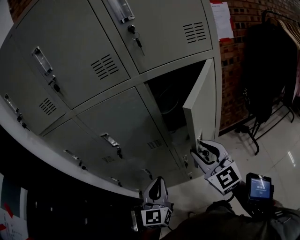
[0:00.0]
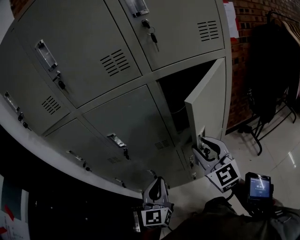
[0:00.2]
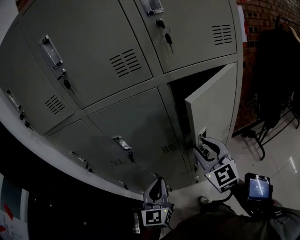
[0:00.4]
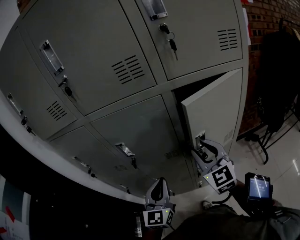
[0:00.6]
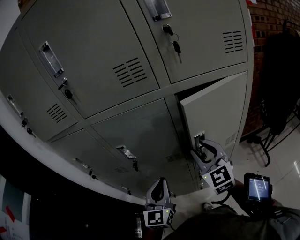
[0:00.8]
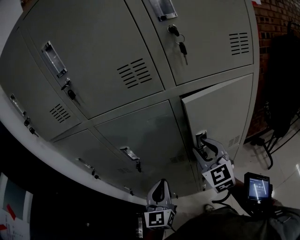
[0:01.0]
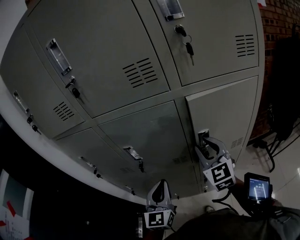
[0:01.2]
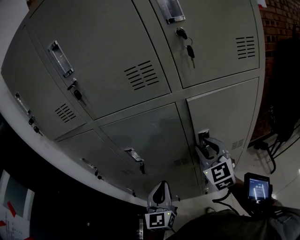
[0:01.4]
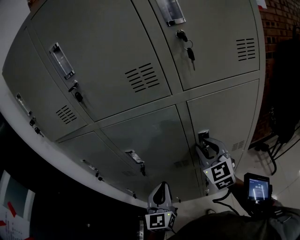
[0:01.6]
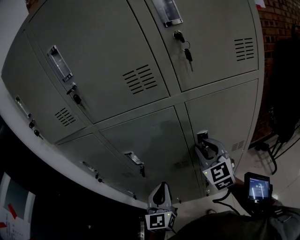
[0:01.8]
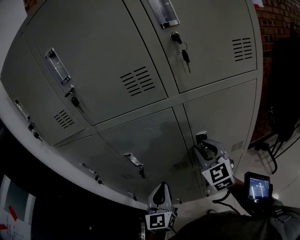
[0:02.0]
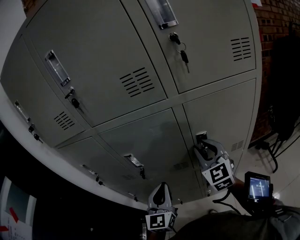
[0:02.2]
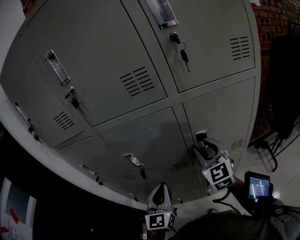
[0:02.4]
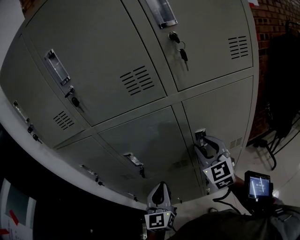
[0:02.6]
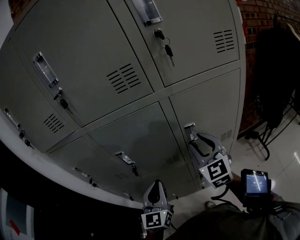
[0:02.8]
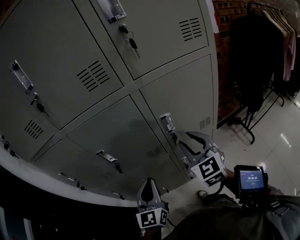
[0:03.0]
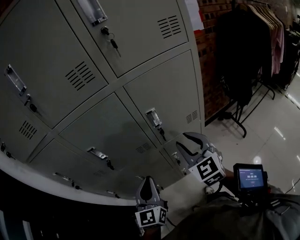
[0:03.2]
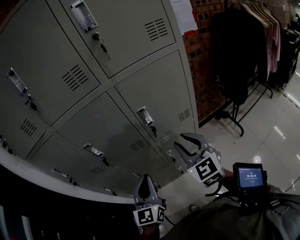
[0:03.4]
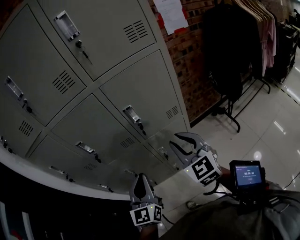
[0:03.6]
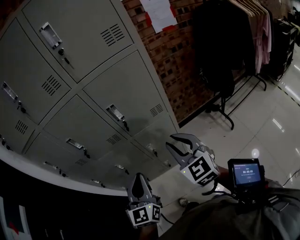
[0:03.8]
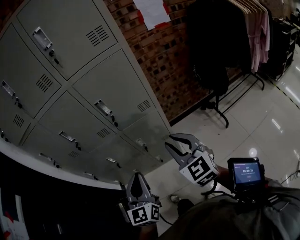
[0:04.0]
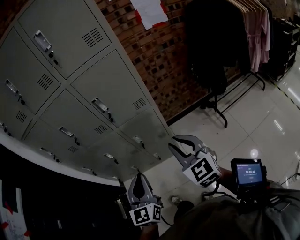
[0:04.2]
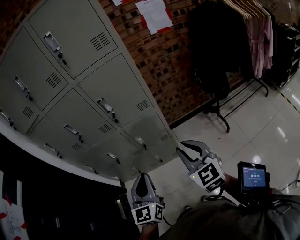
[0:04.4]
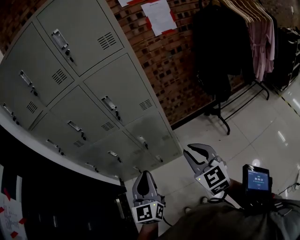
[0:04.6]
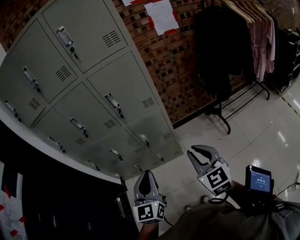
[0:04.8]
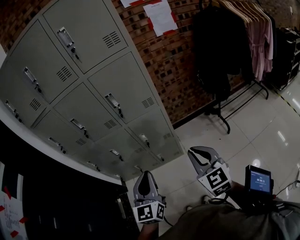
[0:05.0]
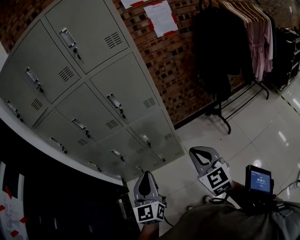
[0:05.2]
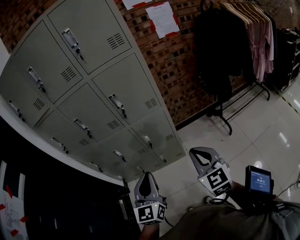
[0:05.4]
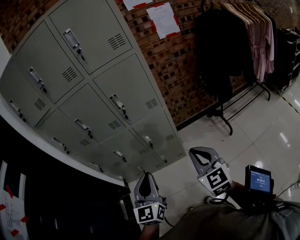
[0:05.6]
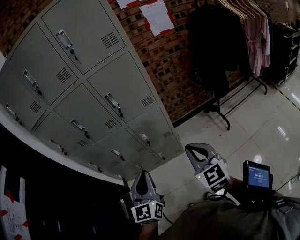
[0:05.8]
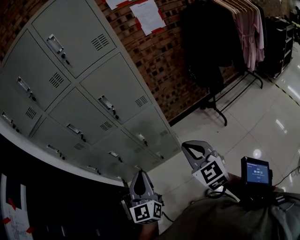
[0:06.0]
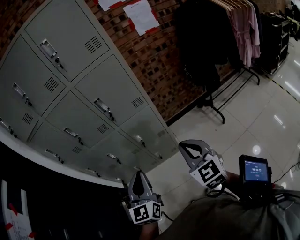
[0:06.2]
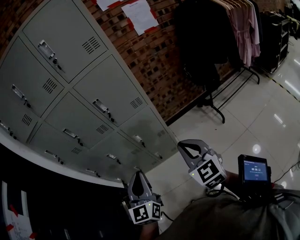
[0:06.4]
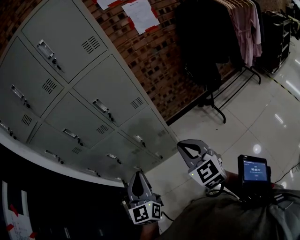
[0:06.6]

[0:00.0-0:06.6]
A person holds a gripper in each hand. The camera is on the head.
0.0 to 1.6 s: The left gripper goes some 10 cm forward and to the left; the right gripper moves forward, roughly 15 cm.
1.6 to 3.2 s: The left gripper is displaced backward and to the right by approximately 10 cm; the right gripper heads backward and to the right, covering roughly 15 cm.
3.2 to 5.0 s: The grippers both shift backward and to the right by approximately 35 cm. The right gripper closes.
5.0 to 6.6 s: The grippers stay close to where they were, moving slightly.

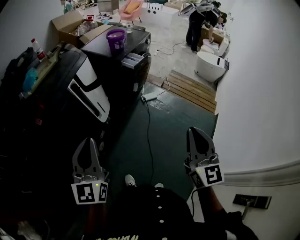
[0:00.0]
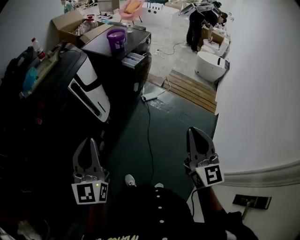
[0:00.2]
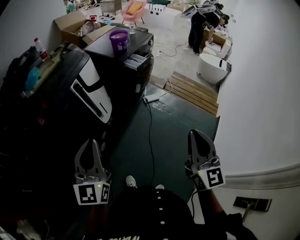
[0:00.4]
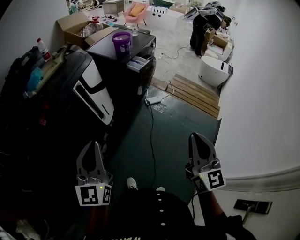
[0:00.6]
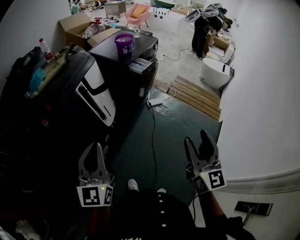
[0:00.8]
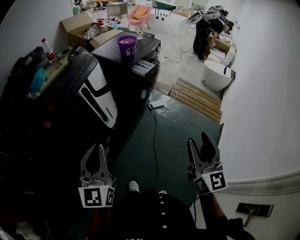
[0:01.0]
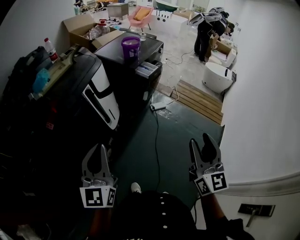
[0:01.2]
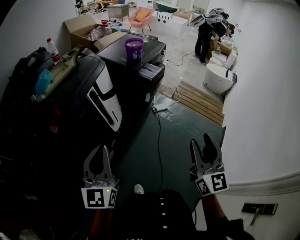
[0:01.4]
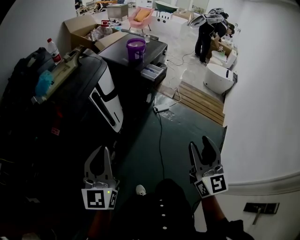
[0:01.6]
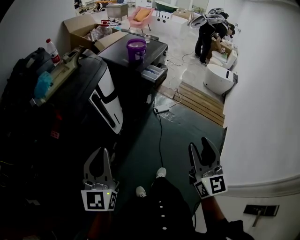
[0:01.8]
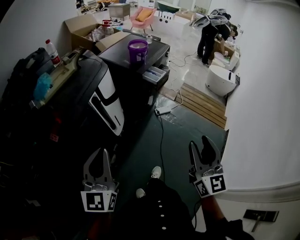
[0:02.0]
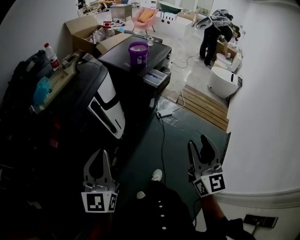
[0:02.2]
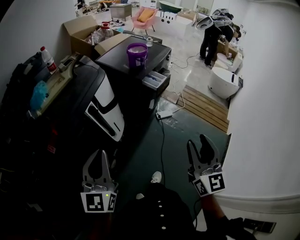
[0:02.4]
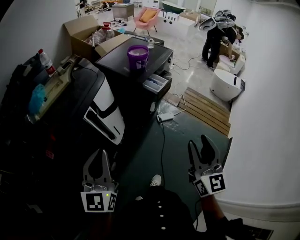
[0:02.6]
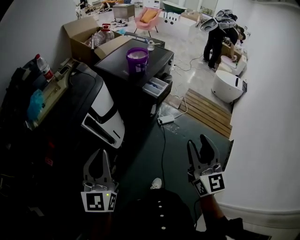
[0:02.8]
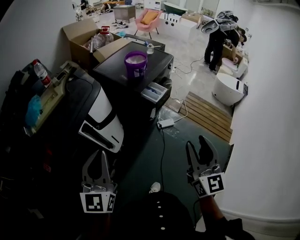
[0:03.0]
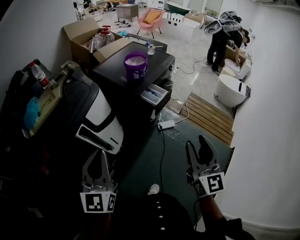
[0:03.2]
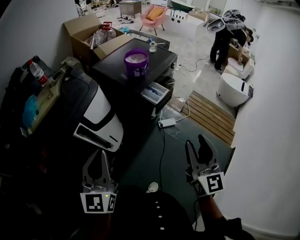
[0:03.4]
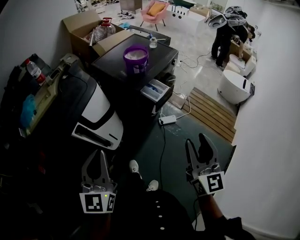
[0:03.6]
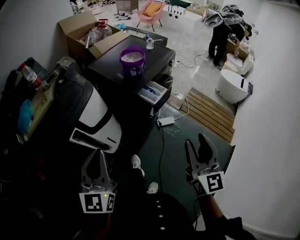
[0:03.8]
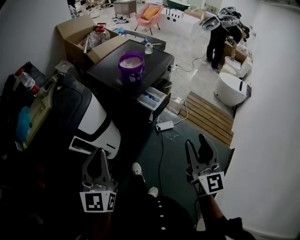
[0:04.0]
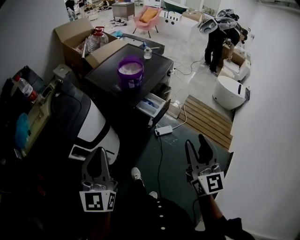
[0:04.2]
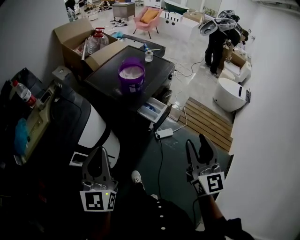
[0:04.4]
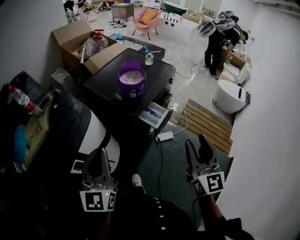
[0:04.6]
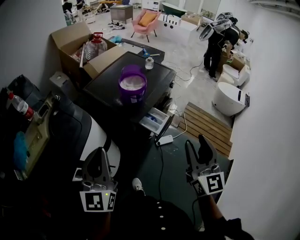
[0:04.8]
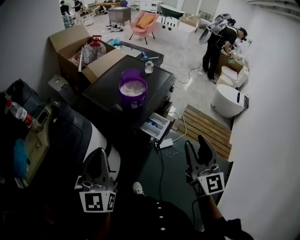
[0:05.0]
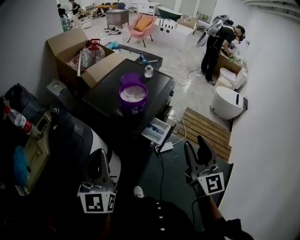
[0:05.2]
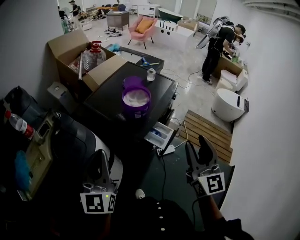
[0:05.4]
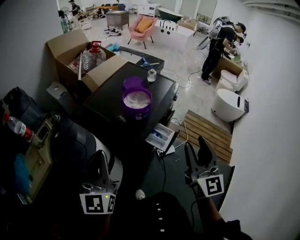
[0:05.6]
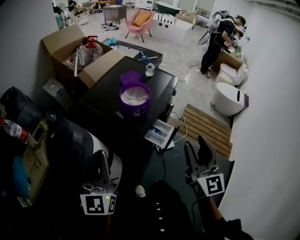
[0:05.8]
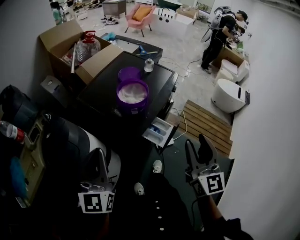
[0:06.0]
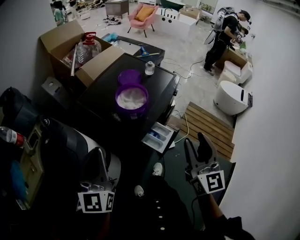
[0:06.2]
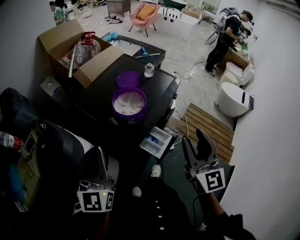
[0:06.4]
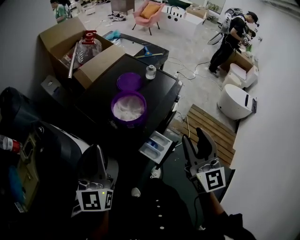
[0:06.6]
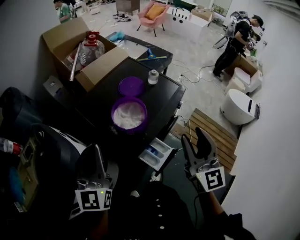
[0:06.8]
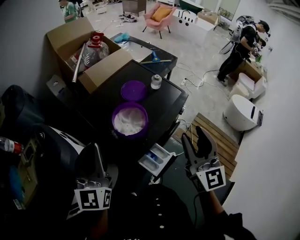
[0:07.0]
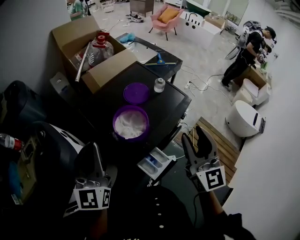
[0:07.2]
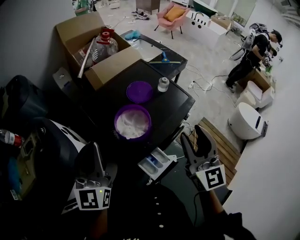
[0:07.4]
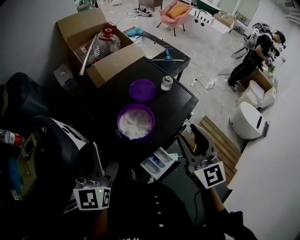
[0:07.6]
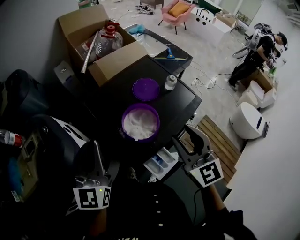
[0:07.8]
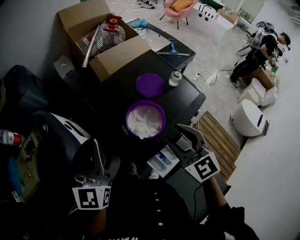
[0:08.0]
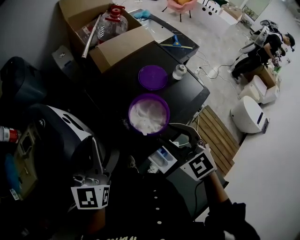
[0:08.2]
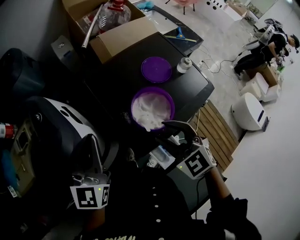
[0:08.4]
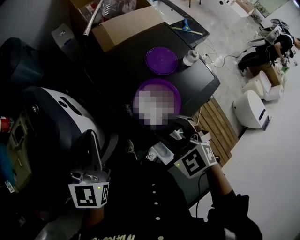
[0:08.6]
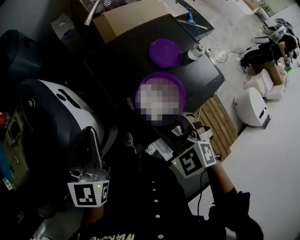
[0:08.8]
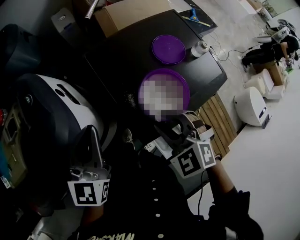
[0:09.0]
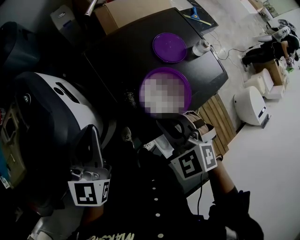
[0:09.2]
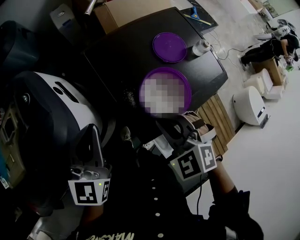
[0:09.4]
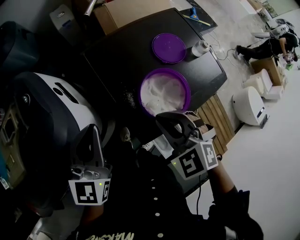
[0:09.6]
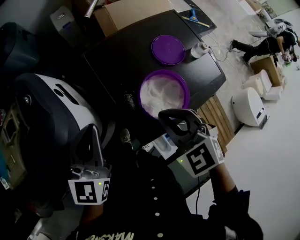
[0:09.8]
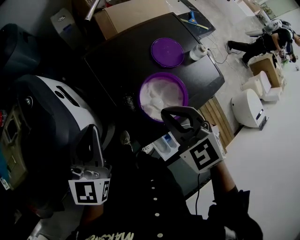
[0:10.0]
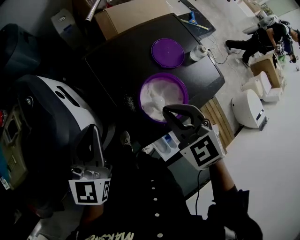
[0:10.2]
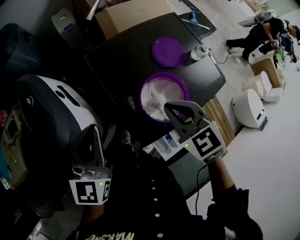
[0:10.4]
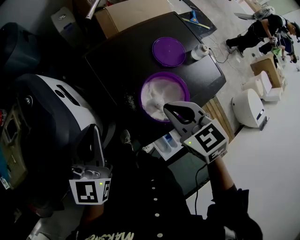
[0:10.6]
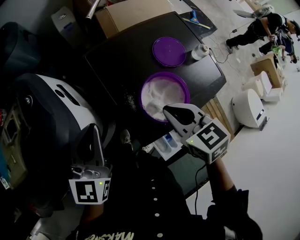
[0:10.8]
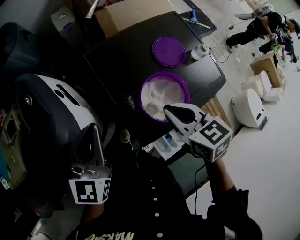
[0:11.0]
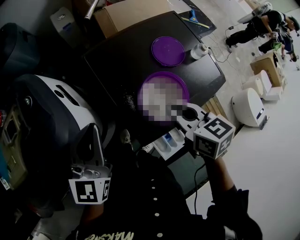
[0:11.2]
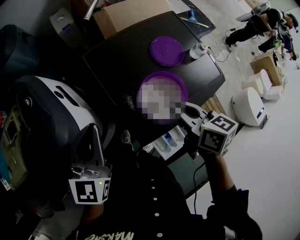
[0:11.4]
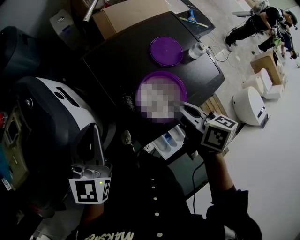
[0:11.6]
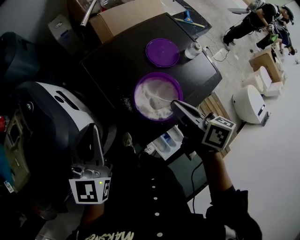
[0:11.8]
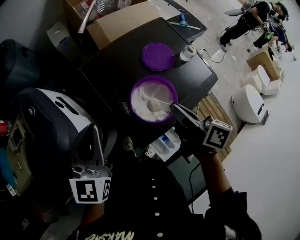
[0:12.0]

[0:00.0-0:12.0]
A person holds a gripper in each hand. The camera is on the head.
0.0 to 1.6 s: Both grippers travel together to the left, roughly 10 cm. The right gripper opens its fingers.
1.6 to 3.0 s: Both grippers travel together forward, about 20 cm.
3.0 to 4.4 s: Both grippers travel together forward, approximately 20 cm.
4.4 to 6.0 s: Both grippers travel together forward, some 20 cm.
6.0 to 7.6 s: The left gripper is displaced forward by some 15 cm, while the right gripper heads forward, covering some 25 cm, and turns by roughly 30 degrees.
7.6 to 9.0 s: The right gripper is displaced to the left and downward by approximately 25 cm, and tips its fingers downward by roughly 40 degrees. Meanwhile the left gripper goes some 10 cm downward and to the left.
9.0 to 10.4 s: The right gripper shifts by about 5 cm, swivels some 20 degrees, and closes.
10.4 to 12.0 s: The right gripper travels to the right by approximately 5 cm, and rotates around the line of its fingers by about 70 degrees, clockwise from behind.

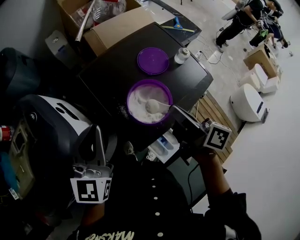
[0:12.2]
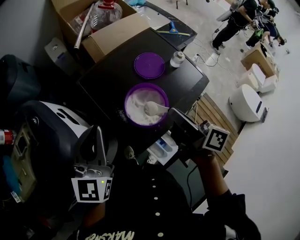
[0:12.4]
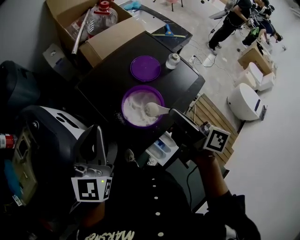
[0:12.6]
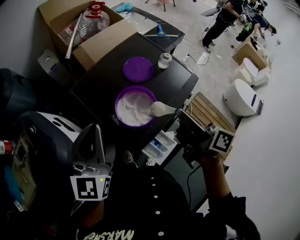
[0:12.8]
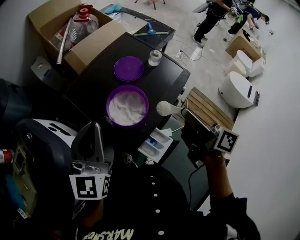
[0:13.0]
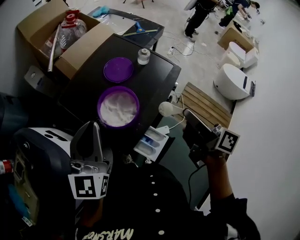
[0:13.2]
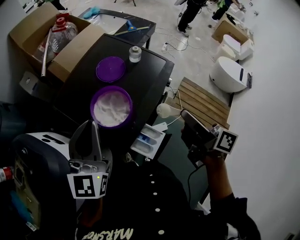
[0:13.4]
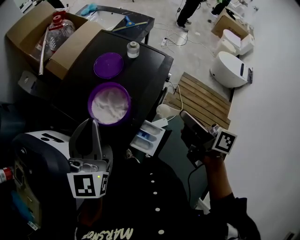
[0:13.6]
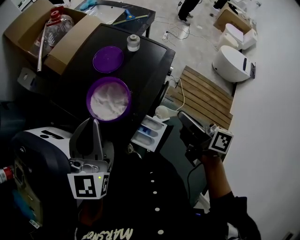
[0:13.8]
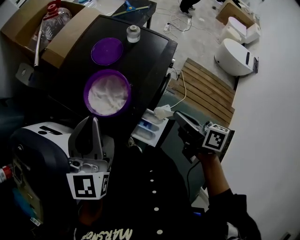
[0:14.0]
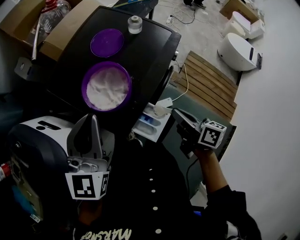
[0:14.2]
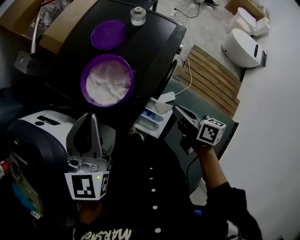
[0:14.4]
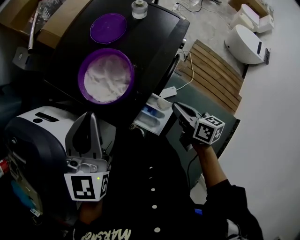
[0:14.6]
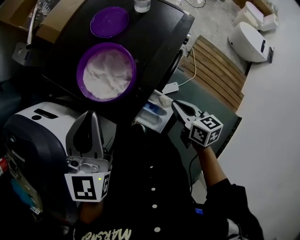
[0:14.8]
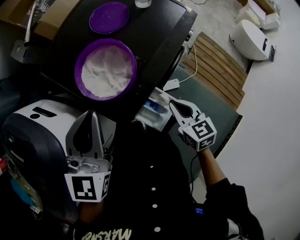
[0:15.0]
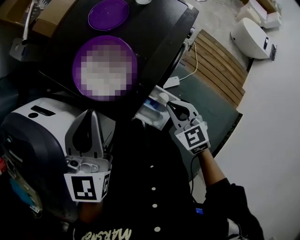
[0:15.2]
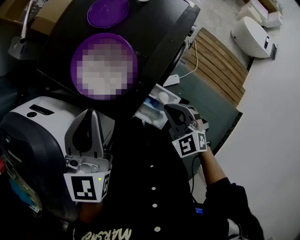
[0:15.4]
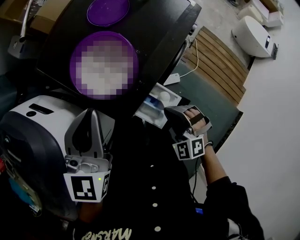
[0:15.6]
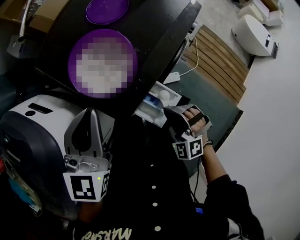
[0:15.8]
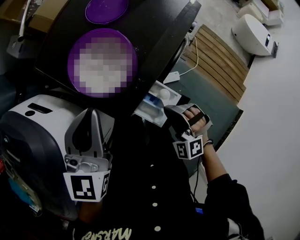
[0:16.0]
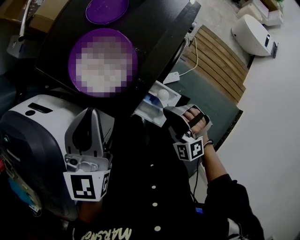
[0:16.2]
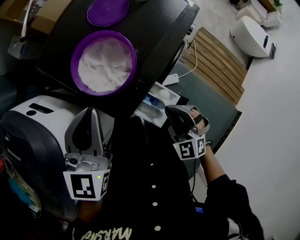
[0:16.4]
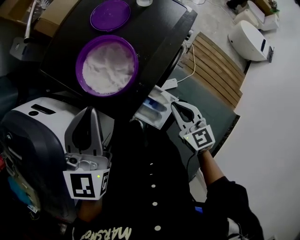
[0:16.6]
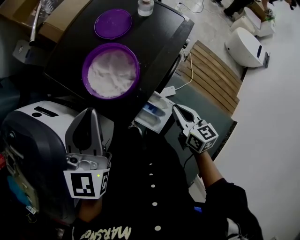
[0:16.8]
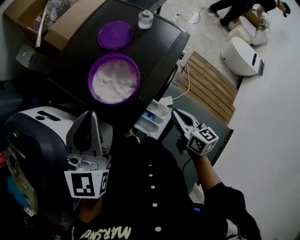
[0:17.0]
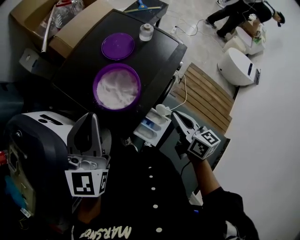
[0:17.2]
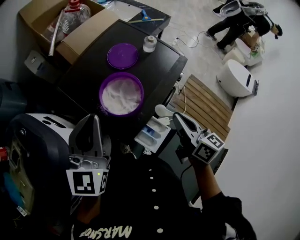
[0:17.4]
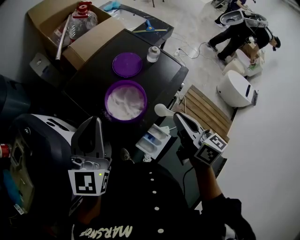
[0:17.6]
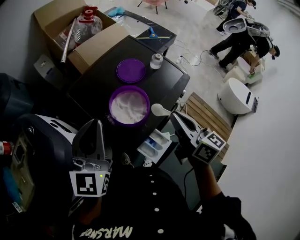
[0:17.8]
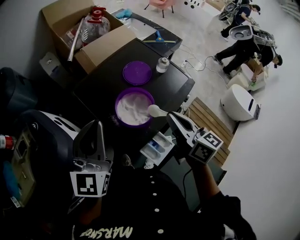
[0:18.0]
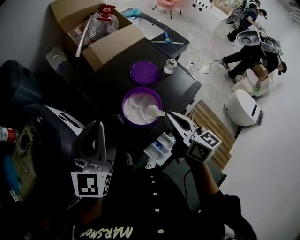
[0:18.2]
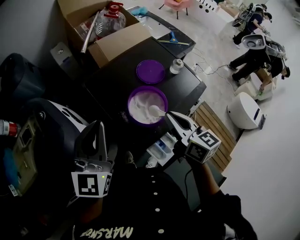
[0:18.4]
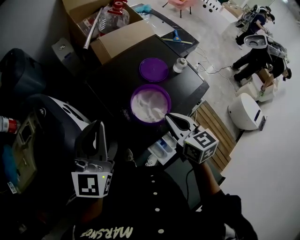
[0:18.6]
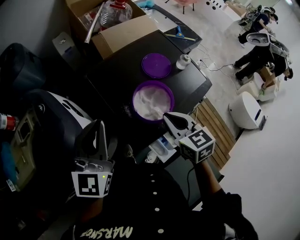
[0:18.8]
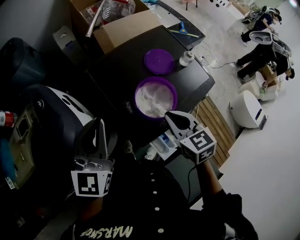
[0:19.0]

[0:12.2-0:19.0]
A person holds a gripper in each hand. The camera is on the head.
12.2 to 13.6 s: The right gripper heads to the right and backward, covering about 20 cm, and swivels some 20 degrees; the left gripper travels to the right by about 10 cm.
13.6 to 15.0 s: The right gripper moves downward, about 20 cm, and points its fingers roughly 30 degrees further downward. Meanwhile the left gripper is displaced downward by approximately 10 cm.
15.0 to 16.2 s: The right gripper goes approximately 5 cm backward, and twists some 70 degrees counterclockwise, seen from behind.
16.2 to 17.6 s: The right gripper goes some 25 cm upward and forward, and rolls clockwise, seen from behind, by some 90 degrees. The left gripper is displaced upward by some 10 cm.
17.6 to 19.0 s: The right gripper travels to the left, downward and forward by approximately 15 cm, and rotates approximately 50 degrees; the left gripper travels to the left by about 10 cm.
